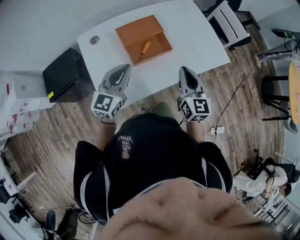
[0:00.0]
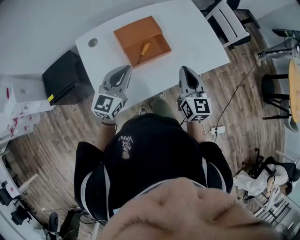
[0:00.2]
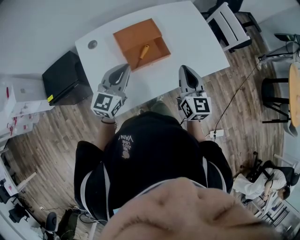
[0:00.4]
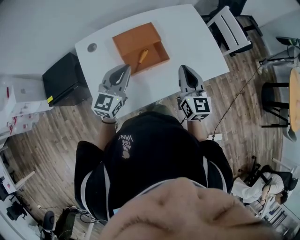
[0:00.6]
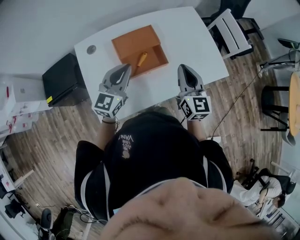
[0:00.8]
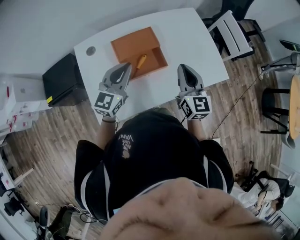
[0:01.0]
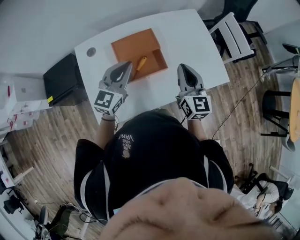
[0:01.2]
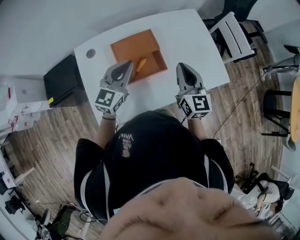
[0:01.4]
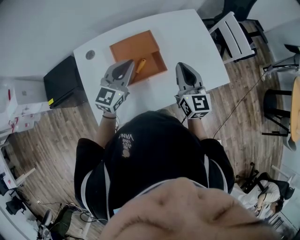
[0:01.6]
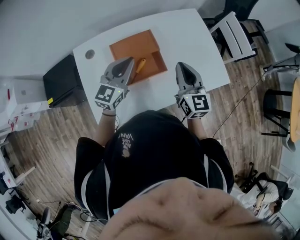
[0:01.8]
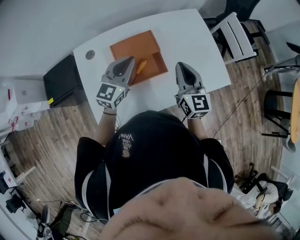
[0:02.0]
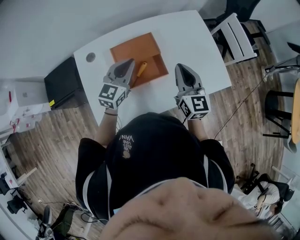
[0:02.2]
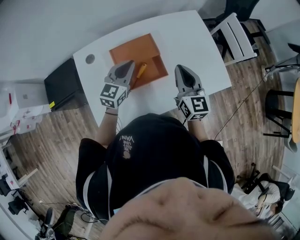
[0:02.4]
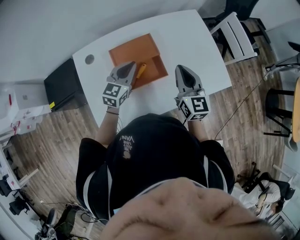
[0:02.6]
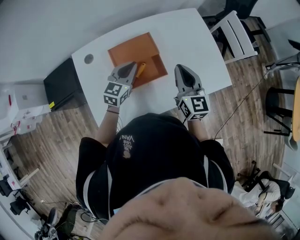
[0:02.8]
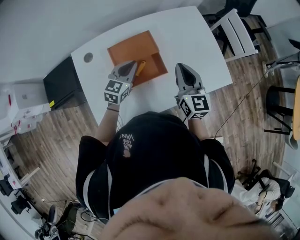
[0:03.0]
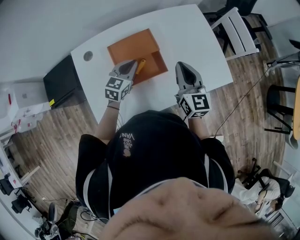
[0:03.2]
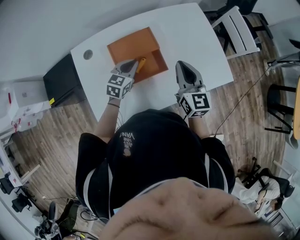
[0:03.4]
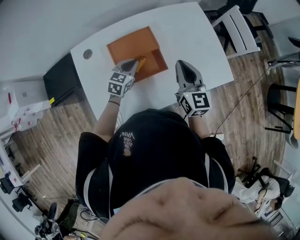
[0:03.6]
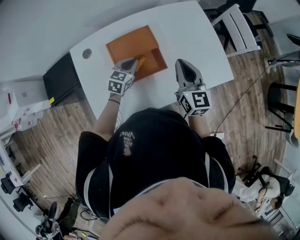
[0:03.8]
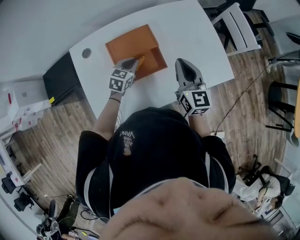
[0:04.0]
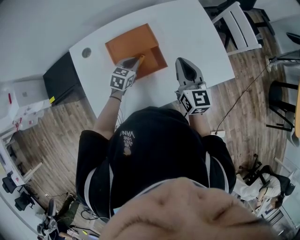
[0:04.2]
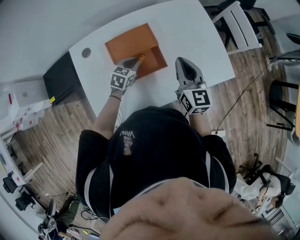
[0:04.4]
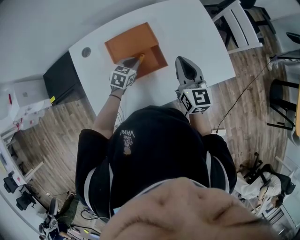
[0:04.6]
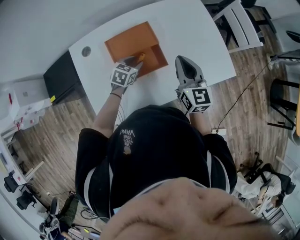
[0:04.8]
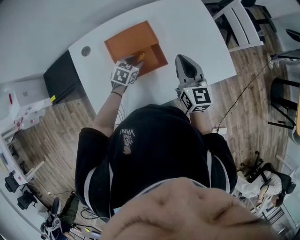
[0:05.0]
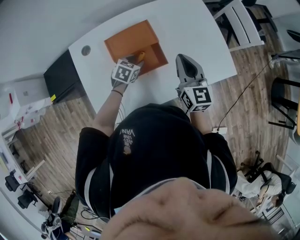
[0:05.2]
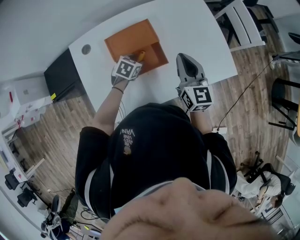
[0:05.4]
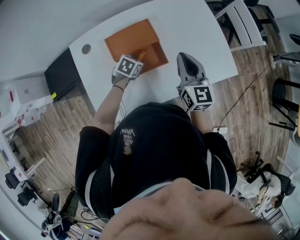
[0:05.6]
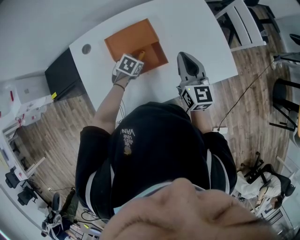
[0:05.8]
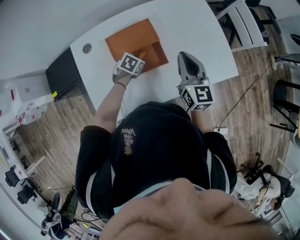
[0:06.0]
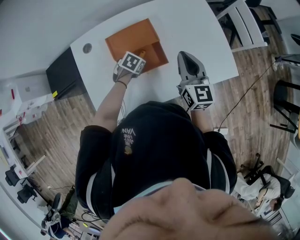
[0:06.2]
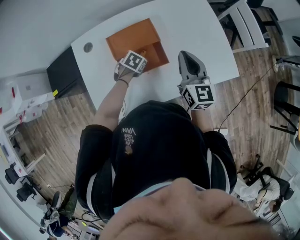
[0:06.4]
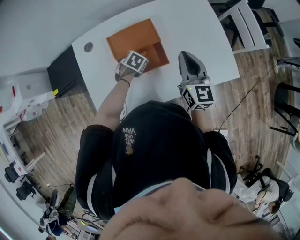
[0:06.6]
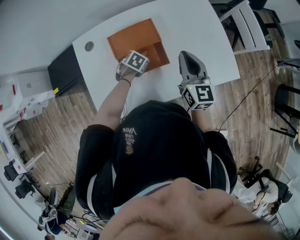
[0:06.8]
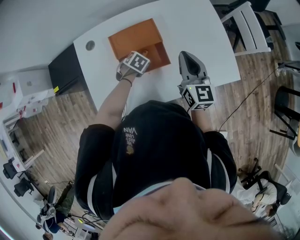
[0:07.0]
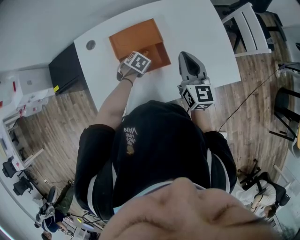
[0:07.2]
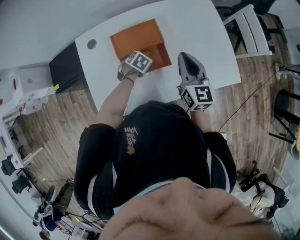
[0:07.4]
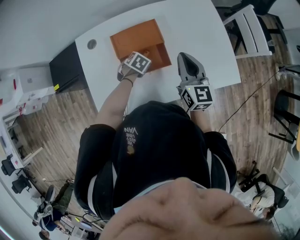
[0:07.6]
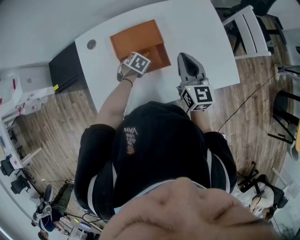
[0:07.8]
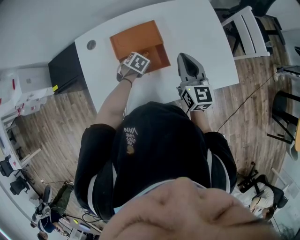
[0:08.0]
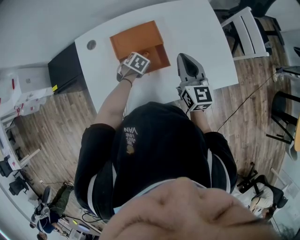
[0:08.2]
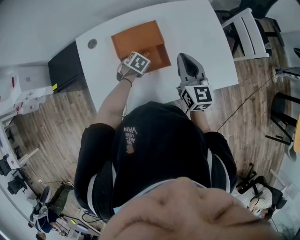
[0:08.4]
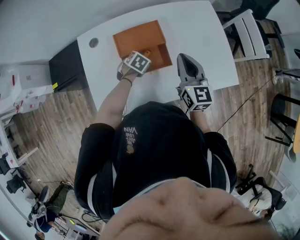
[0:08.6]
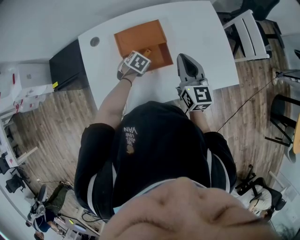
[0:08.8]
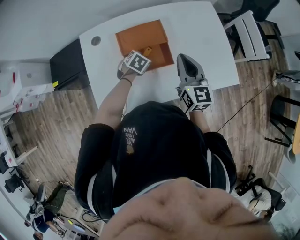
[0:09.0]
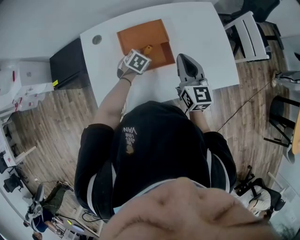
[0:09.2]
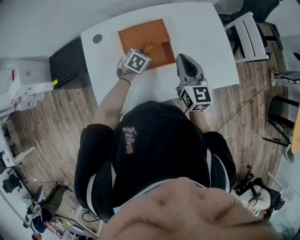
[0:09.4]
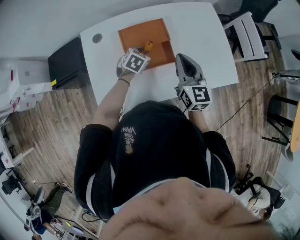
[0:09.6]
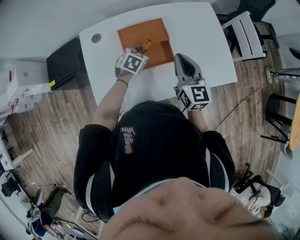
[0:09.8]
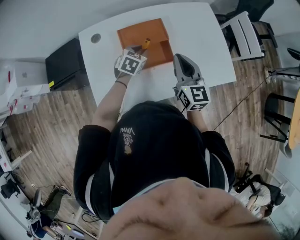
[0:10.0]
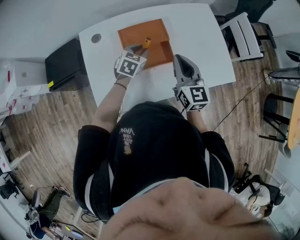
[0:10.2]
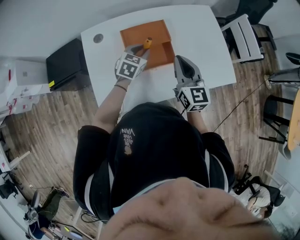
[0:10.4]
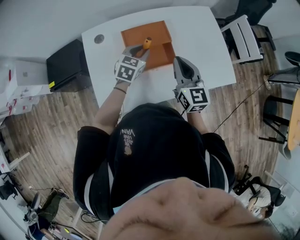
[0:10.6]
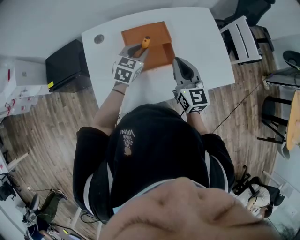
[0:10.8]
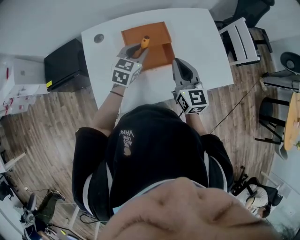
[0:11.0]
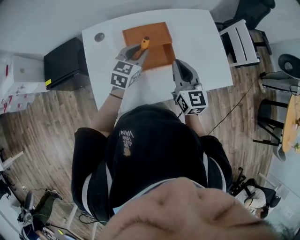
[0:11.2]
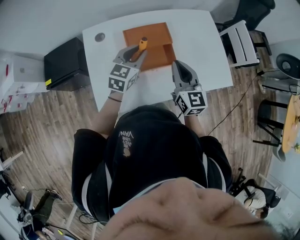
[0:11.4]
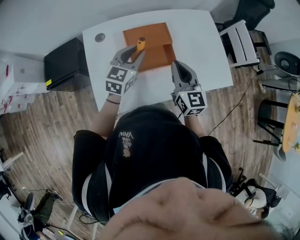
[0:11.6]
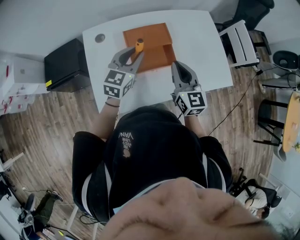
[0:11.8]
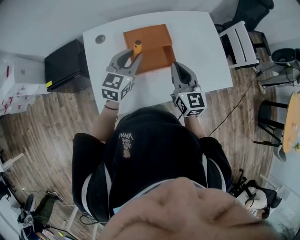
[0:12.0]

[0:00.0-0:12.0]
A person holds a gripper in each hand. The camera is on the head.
0:00.0 to 0:01.6: The grippers both shift forward by approximately 15 cm.
0:01.6 to 0:03.0: The left gripper moves downward and forward, approximately 10 cm.
0:03.0 to 0:04.4: The left gripper is displaced downward by approximately 10 cm, and swivels roughly 20 degrees.
0:04.4 to 0:06.0: The left gripper shifts about 5 cm downward, turns by roughly 30 degrees, and opens its fingers.
0:06.0 to 0:09.0: The grippers stay close to where they were, moving slightly.
0:09.0 to 0:10.4: The left gripper travels upward by approximately 10 cm, and turns by about 30 degrees. The right gripper changes place by some 5 cm.
0:10.4 to 0:12.0: The left gripper heads upward and backward, covering roughly 15 cm, and changes its angle by approximately 20 degrees.

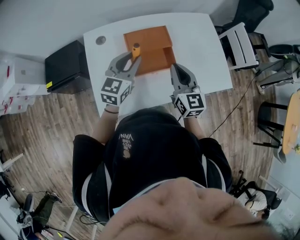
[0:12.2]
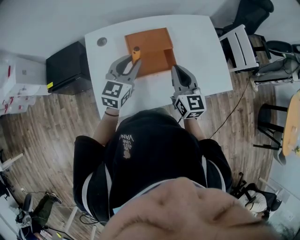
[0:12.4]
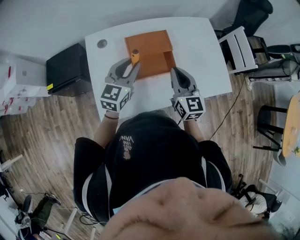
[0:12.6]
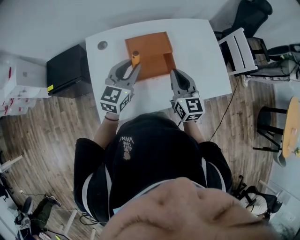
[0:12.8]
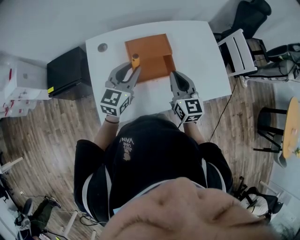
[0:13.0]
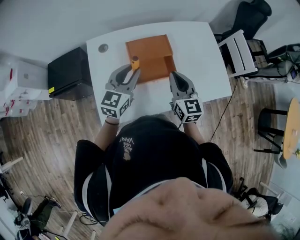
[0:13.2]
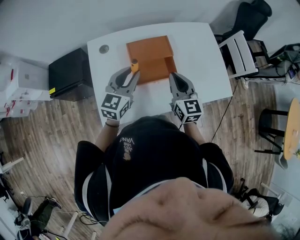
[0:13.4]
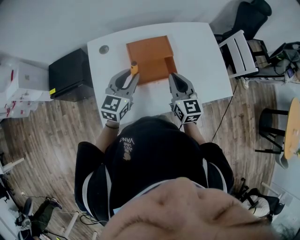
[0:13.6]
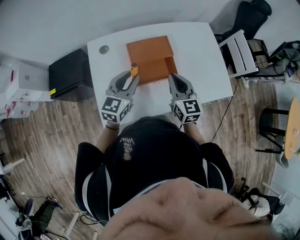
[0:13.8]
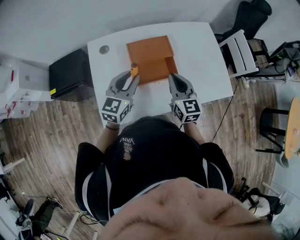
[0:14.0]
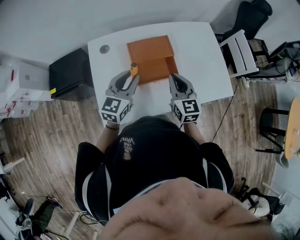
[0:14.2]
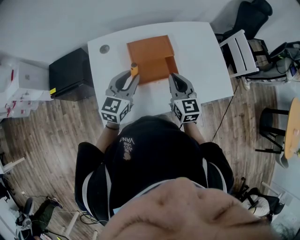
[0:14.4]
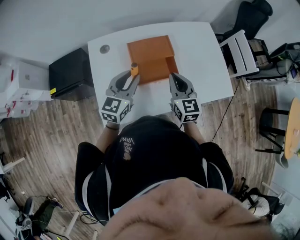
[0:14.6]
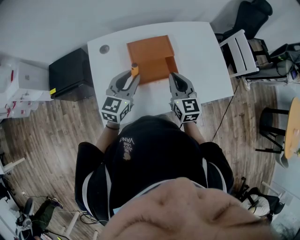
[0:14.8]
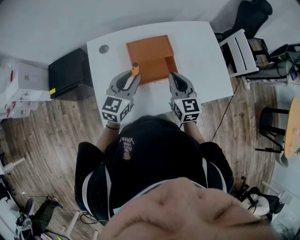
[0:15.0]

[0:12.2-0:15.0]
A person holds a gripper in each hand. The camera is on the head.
0:12.2 to 0:13.6: The grippers move only a little.
0:13.6 to 0:15.0: The two grippers keep their place.

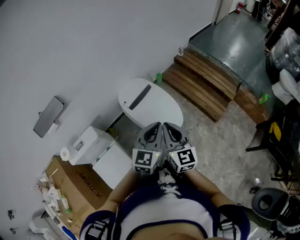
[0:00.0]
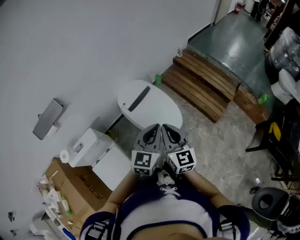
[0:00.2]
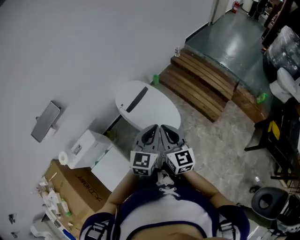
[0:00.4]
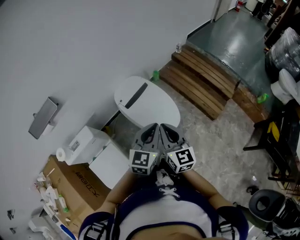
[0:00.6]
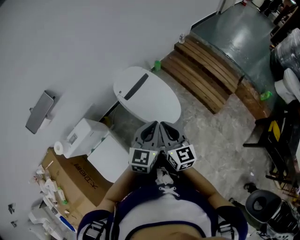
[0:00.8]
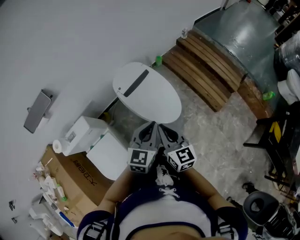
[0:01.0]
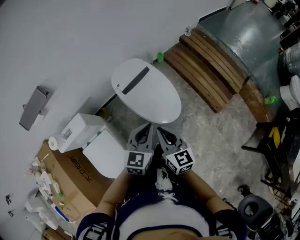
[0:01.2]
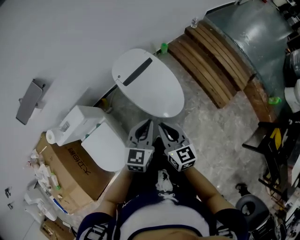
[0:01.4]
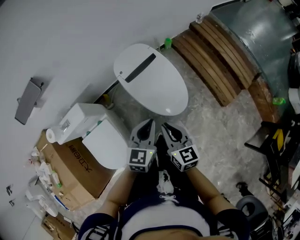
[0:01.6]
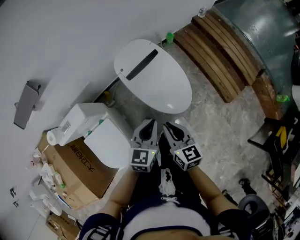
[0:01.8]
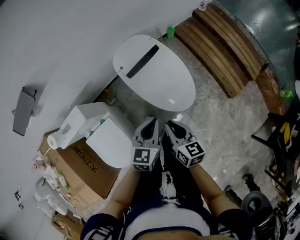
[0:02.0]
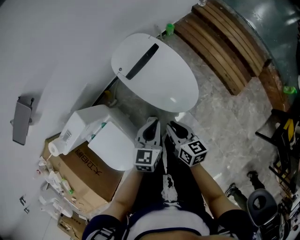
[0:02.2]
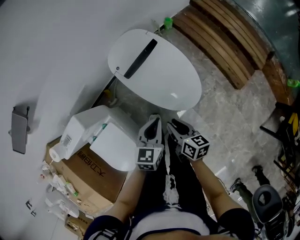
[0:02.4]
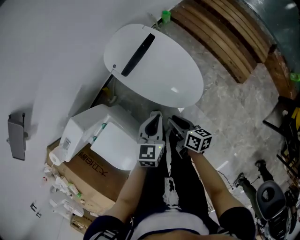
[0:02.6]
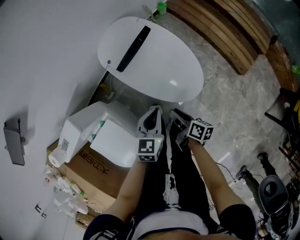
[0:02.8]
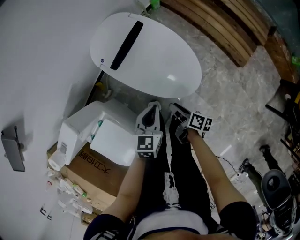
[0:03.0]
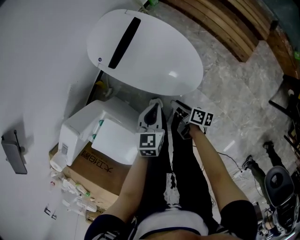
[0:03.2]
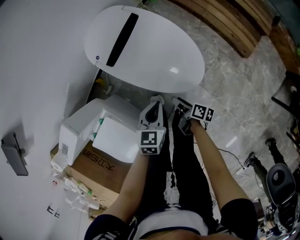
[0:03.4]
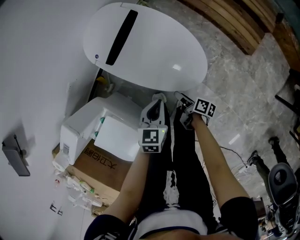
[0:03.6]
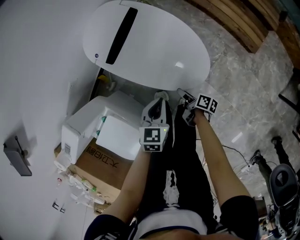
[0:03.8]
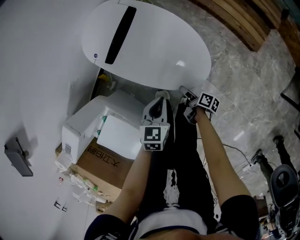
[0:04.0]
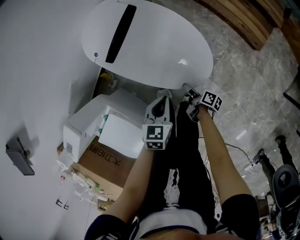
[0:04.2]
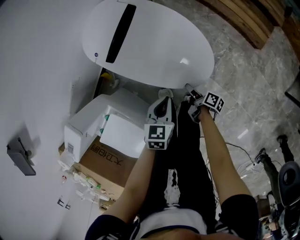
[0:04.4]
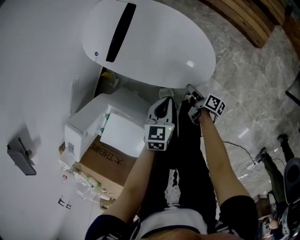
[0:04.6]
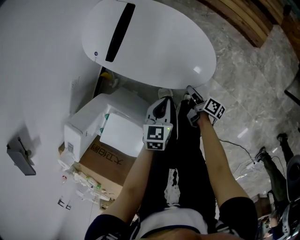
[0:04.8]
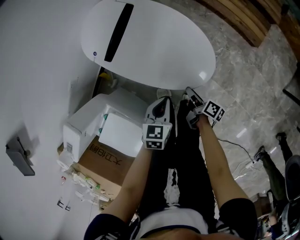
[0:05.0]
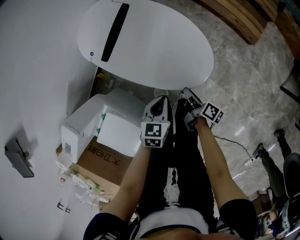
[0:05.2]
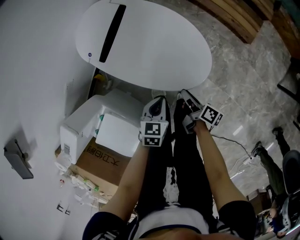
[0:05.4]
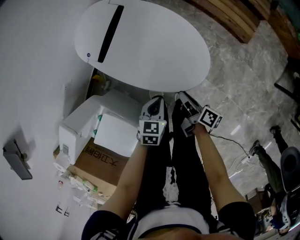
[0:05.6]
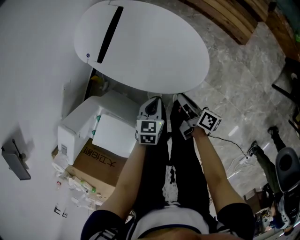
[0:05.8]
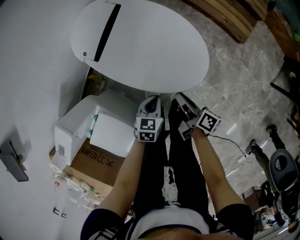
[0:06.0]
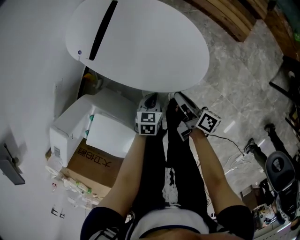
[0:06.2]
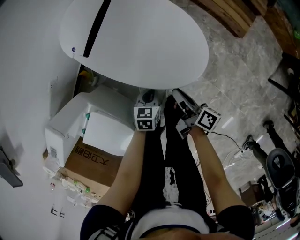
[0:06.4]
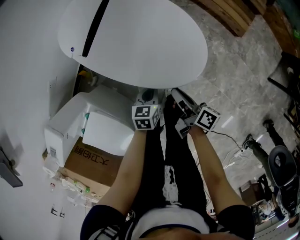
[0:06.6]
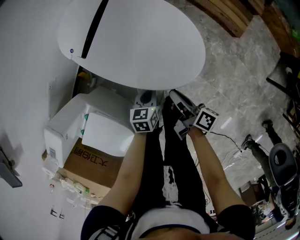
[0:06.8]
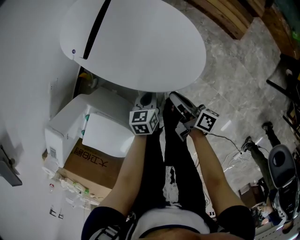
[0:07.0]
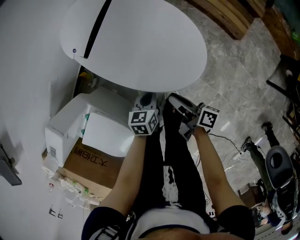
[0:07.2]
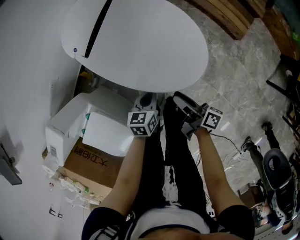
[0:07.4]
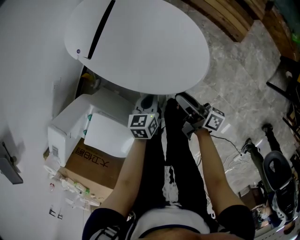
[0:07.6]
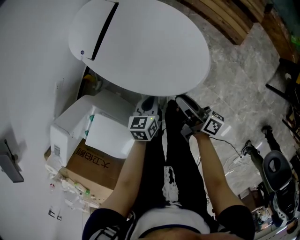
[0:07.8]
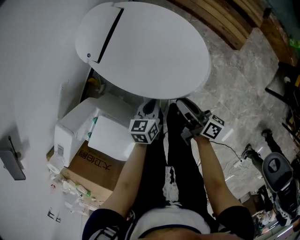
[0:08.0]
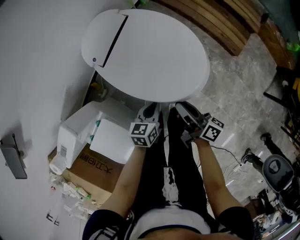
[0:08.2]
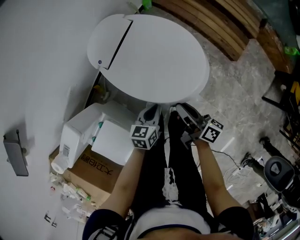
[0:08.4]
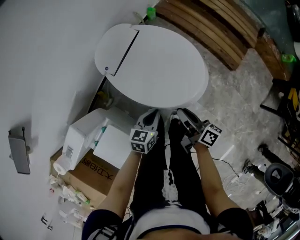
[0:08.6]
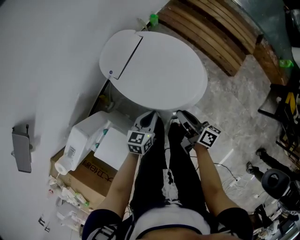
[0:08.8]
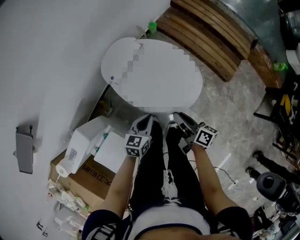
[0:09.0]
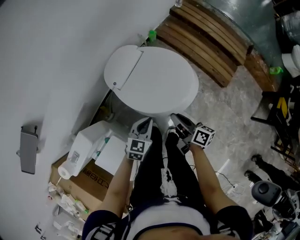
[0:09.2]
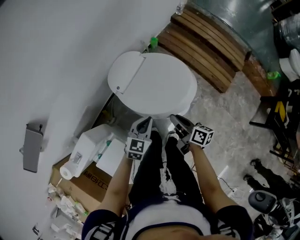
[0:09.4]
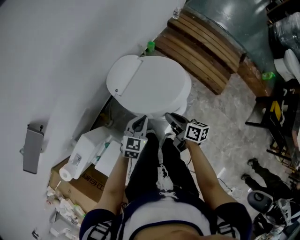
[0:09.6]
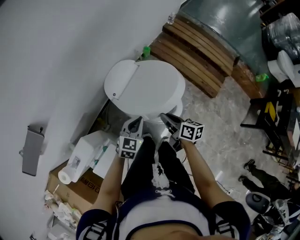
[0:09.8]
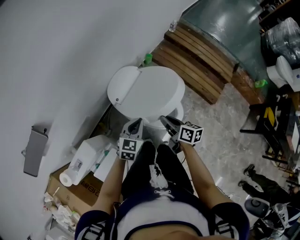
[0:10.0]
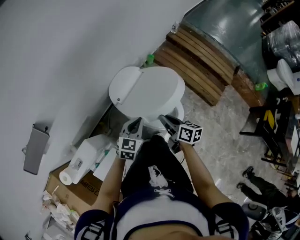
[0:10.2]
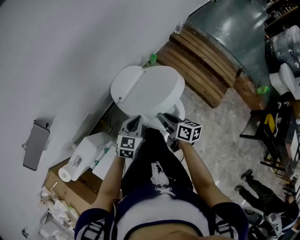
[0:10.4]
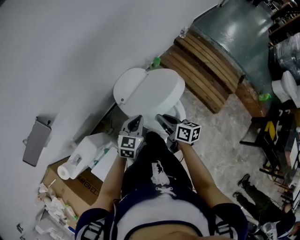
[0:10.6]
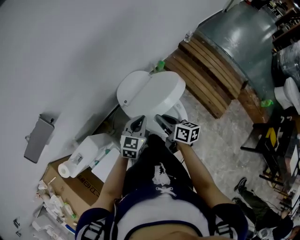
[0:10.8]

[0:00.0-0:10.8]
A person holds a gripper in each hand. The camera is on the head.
0:00.0 to 0:01.6: Both grippers travel together downward, about 15 cm. The left gripper changes its angle by some 20 degrees. The right gripper changes its angle by about 30 degrees.
0:01.6 to 0:03.0: The two grippers go roughly 25 cm downward. The right gripper rolls clockwise, seen from behind, by roughly 60 degrees, and opens up.
0:03.0 to 0:04.6: The right gripper is displaced downward by roughly 15 cm, and turns by about 20 degrees; the left gripper is displaced downward by approximately 10 cm.
0:04.6 to 0:06.2: The right gripper heads upward, covering approximately 15 cm, while the left gripper travels downward by about 10 cm.
0:06.2 to 0:07.8: Both grippers move upward, some 5 cm.
0:07.8 to 0:09.2: Both grippers travel together upward and to the left, some 15 cm. The left gripper changes its angle by about 30 degrees.
0:09.2 to 0:10.8: The right gripper heads upward, to the left and forward, covering roughly 15 cm, and swivels about 20 degrees. The left gripper shifts about 15 cm upward and forward.
